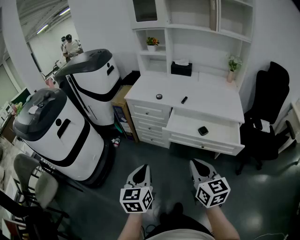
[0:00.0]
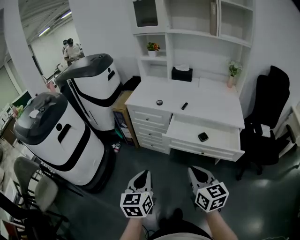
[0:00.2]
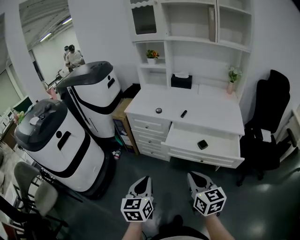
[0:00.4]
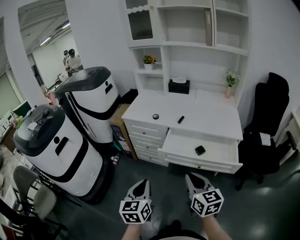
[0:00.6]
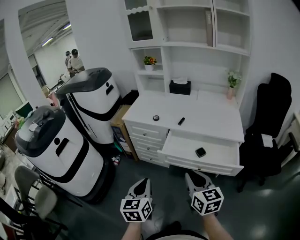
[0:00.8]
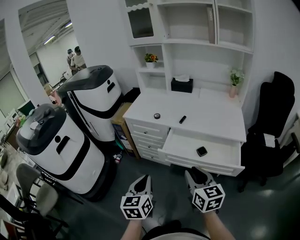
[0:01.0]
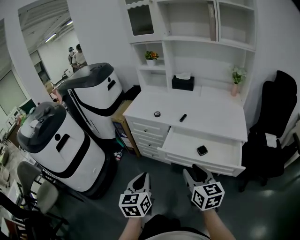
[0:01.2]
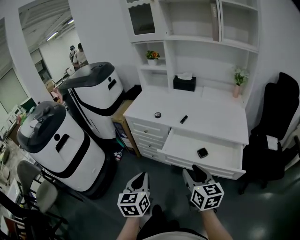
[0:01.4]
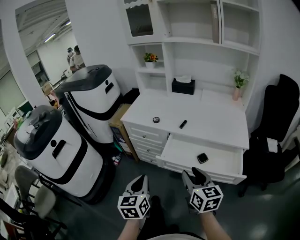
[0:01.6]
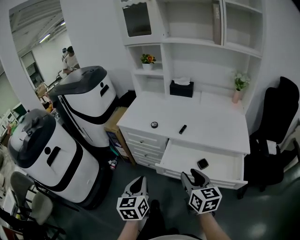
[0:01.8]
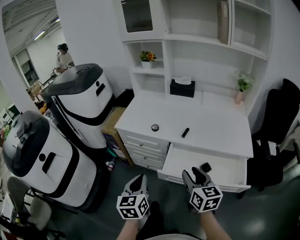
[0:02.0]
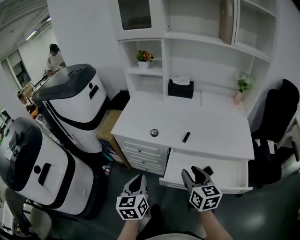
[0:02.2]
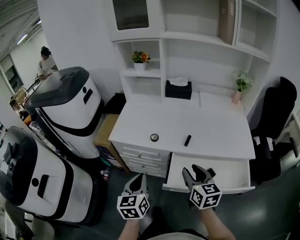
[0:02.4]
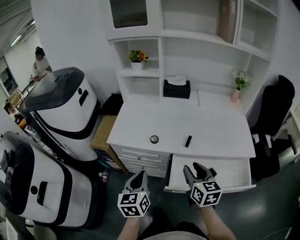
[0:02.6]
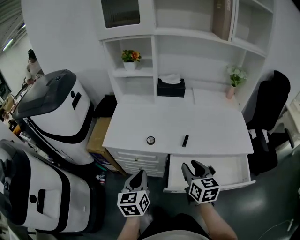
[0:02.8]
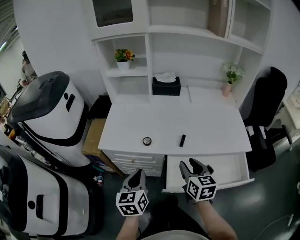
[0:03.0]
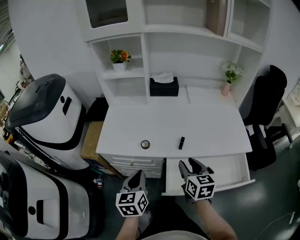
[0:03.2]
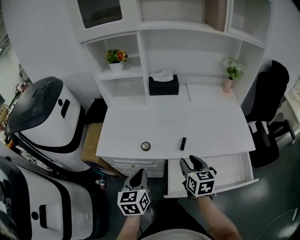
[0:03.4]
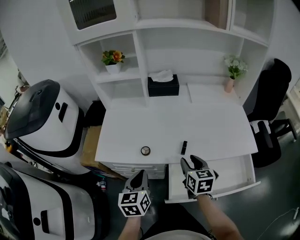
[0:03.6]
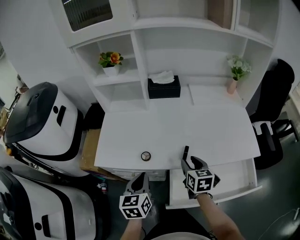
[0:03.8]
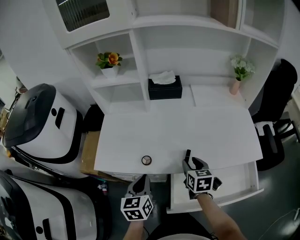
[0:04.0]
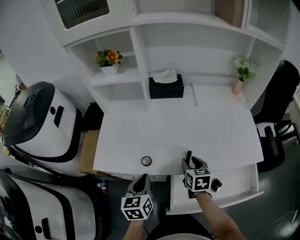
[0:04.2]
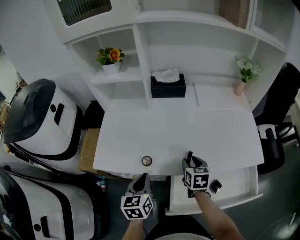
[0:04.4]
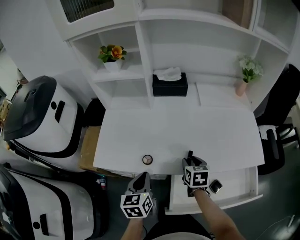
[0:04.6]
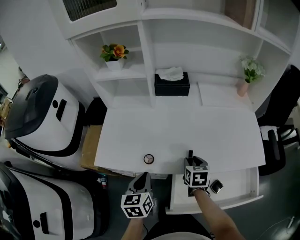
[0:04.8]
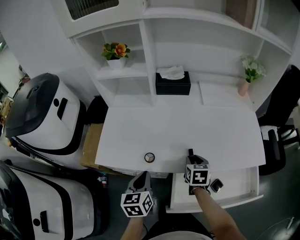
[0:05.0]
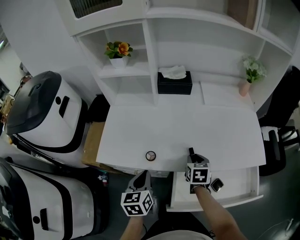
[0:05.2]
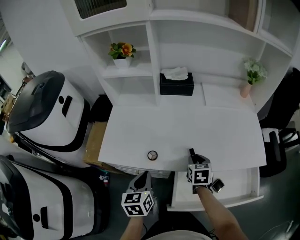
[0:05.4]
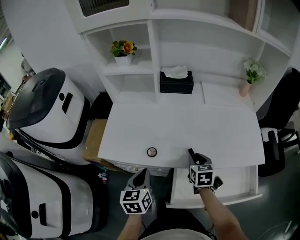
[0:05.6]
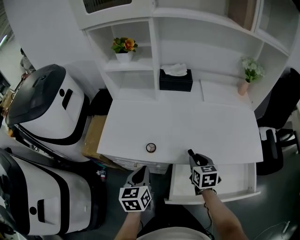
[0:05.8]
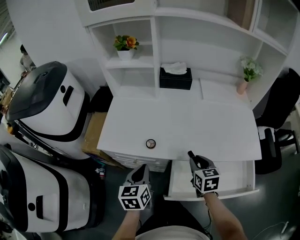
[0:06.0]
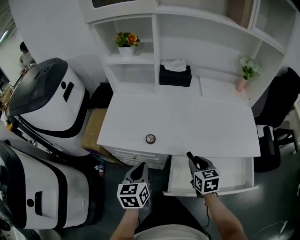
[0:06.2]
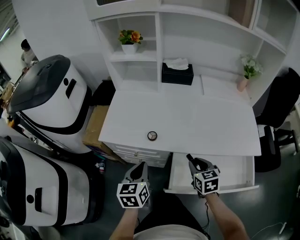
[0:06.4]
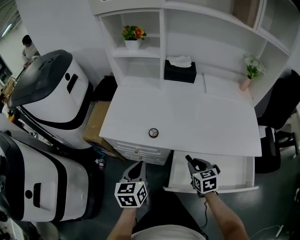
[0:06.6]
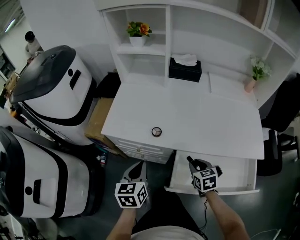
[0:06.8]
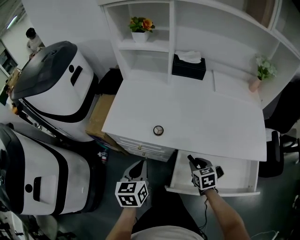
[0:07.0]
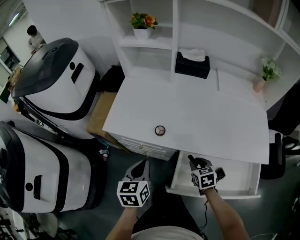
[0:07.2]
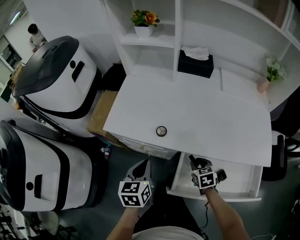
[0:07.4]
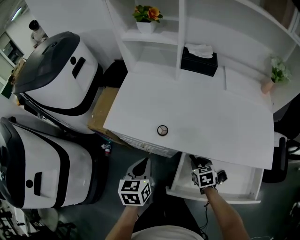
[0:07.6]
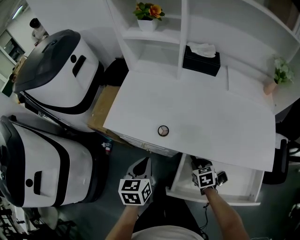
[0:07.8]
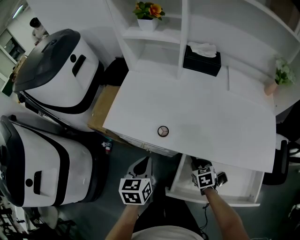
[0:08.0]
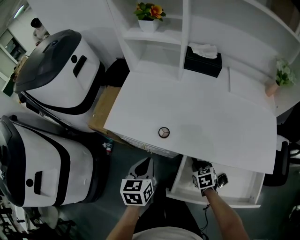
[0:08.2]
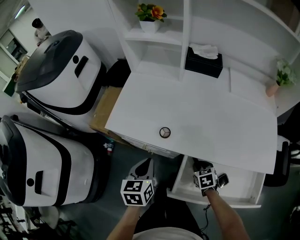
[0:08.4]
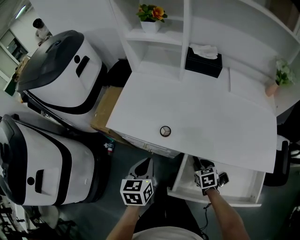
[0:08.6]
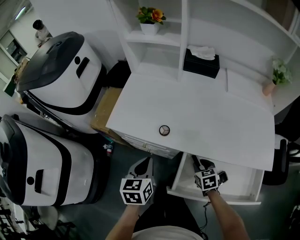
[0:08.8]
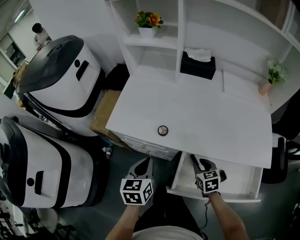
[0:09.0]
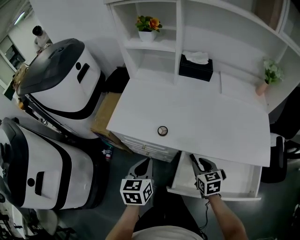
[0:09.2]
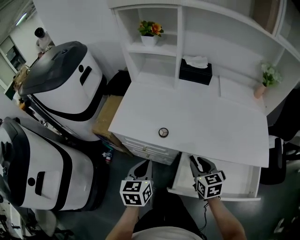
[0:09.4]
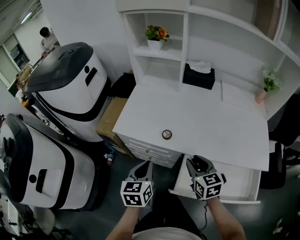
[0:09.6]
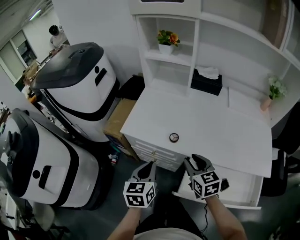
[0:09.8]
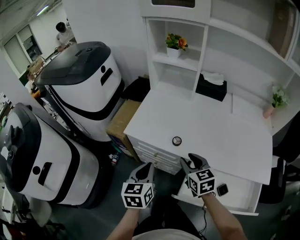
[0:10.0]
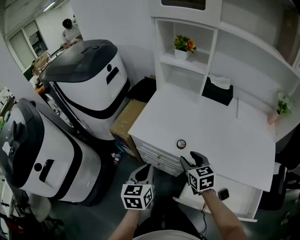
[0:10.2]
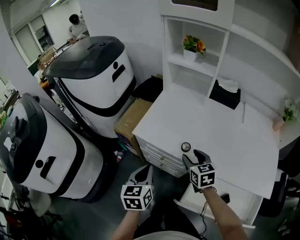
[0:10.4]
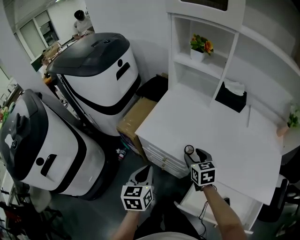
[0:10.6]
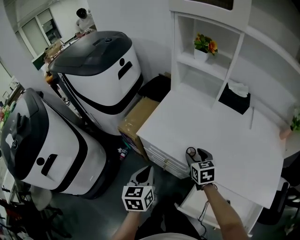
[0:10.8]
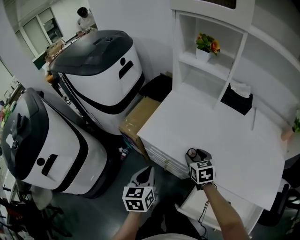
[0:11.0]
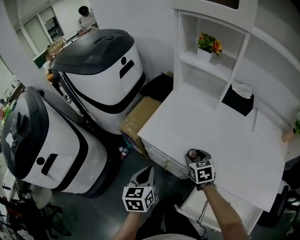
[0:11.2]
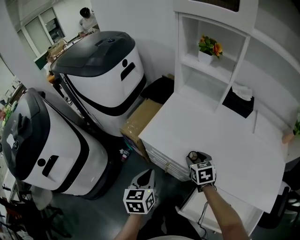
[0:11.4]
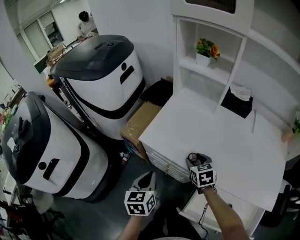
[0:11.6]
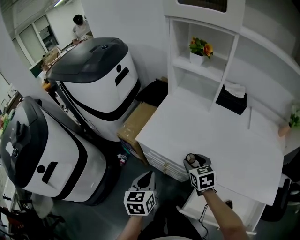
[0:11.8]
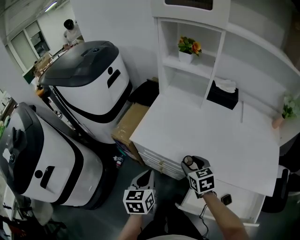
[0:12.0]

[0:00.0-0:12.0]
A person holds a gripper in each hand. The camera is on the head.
0.0 to 1.6 s: The grippers both shift forward and to the right by about 15 cm. The right gripper opens.
1.6 to 3.0 s: Both grippers travel together forward, approximately 25 cm. The right gripper rotates roughly 20 degrees.
3.0 to 4.4 s: The two grippers go about 15 cm forward and downward.
4.4 to 6.0 s: Both grippers travel together backward, roughly 5 cm.
6.0 to 7.6 s: The right gripper shifts approximately 15 cm downward, and changes its angle by roughly 20 degrees.
7.6 to 9.0 s: The grippers make only small movements.
9.0 to 10.4 s: The left gripper goes roughly 10 cm to the left. Meanwhile the right gripper travels to the left, forward and upward by approximately 20 cm, and opens its fingers.

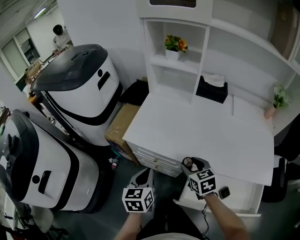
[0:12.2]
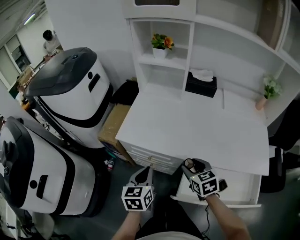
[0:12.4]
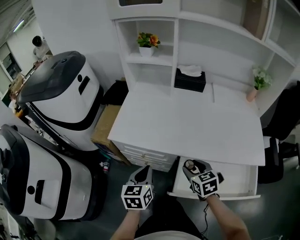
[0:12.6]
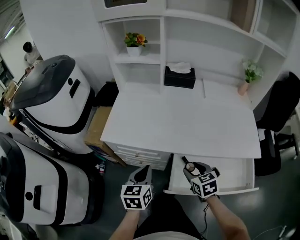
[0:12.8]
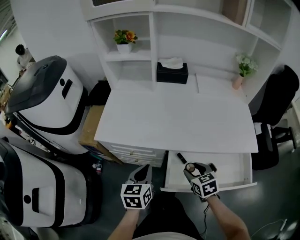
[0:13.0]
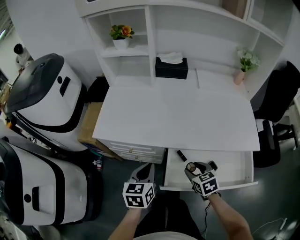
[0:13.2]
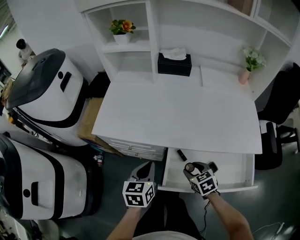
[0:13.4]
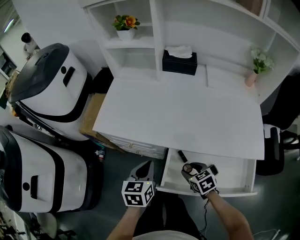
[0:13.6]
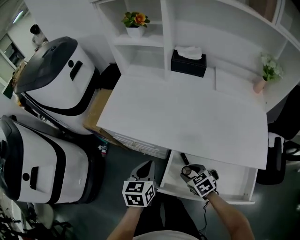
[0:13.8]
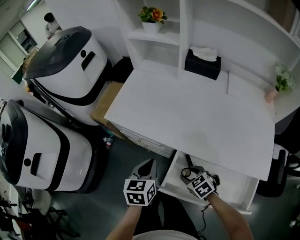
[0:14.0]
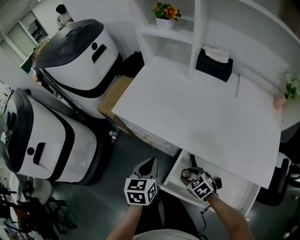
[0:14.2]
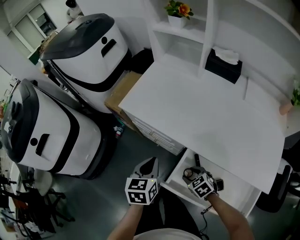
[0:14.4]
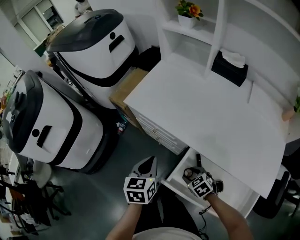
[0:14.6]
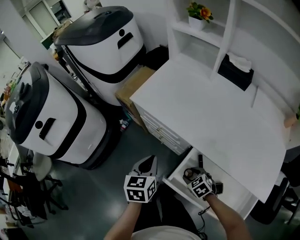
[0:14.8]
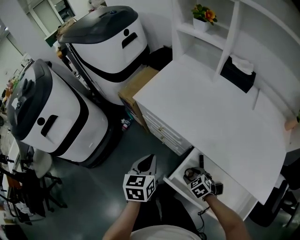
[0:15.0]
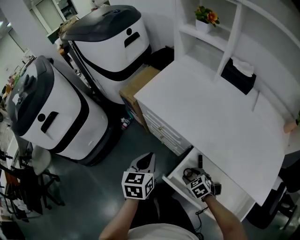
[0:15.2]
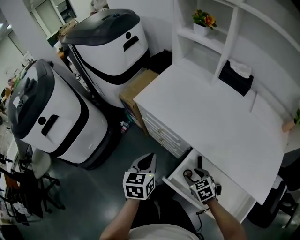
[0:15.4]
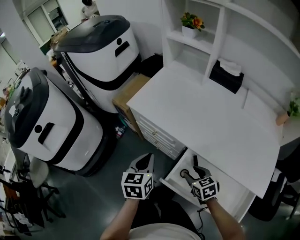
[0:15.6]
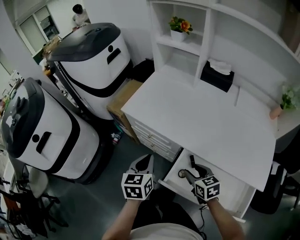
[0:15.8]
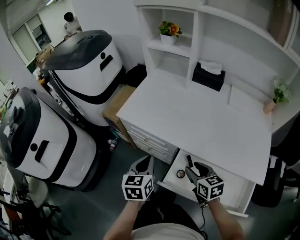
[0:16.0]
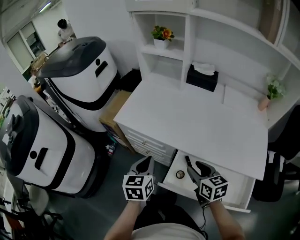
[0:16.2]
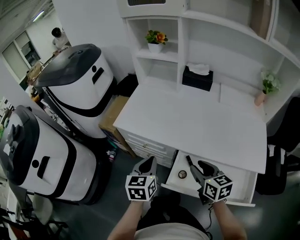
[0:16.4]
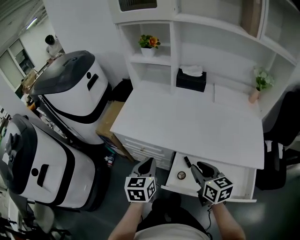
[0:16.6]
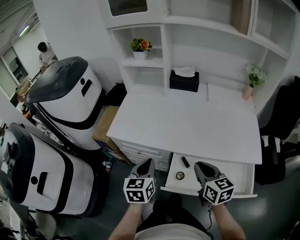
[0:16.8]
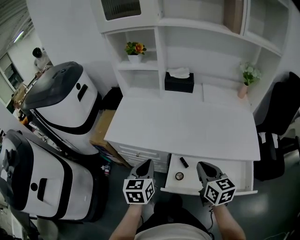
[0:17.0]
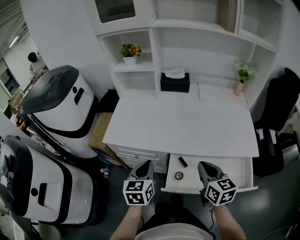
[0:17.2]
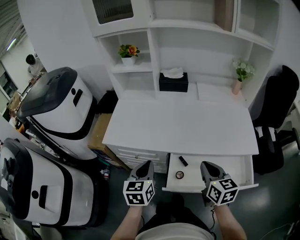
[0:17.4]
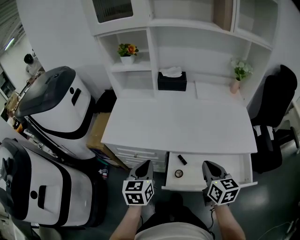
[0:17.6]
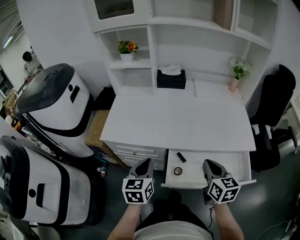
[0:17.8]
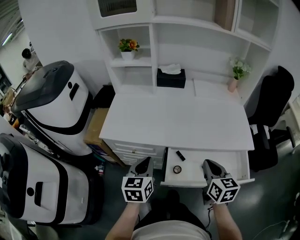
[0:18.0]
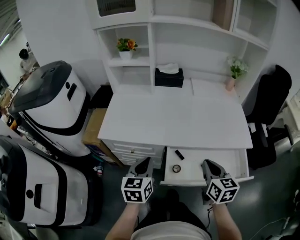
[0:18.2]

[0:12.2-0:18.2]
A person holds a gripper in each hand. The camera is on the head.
12.2 to 13.8 s: The right gripper heads downward, to the right and backward, covering some 20 cm, while the left gripper goes some 15 cm to the right.
13.8 to 15.2 s: The right gripper shifts roughly 5 cm downward, and changes its angle by approximately 30 degrees. The left gripper is displaced to the left by about 10 cm, and changes its angle by roughly 20 degrees.
15.2 to 16.6 s: The right gripper goes about 25 cm upward, tips its fingers upward by about 40 degrees, and closes. The left gripper moves roughly 10 cm, and swivels about 20 degrees.
16.6 to 18.2 s: The right gripper goes roughly 5 cm to the right and backward, swivels roughly 30 degrees, and closes its fingers.

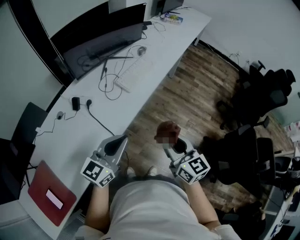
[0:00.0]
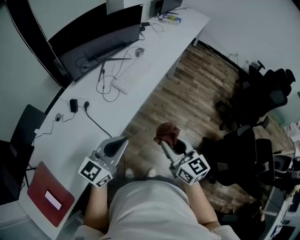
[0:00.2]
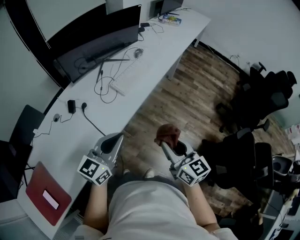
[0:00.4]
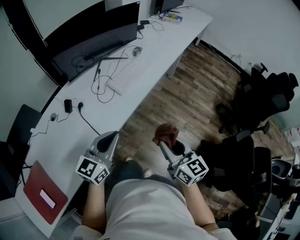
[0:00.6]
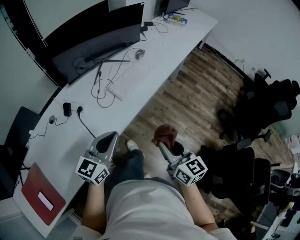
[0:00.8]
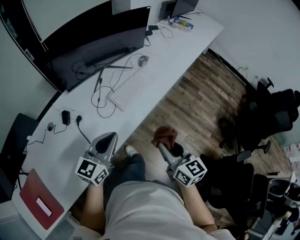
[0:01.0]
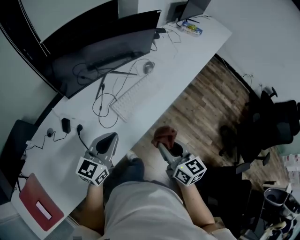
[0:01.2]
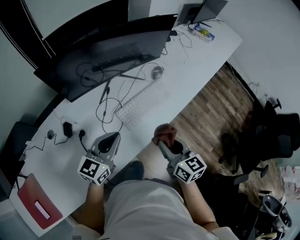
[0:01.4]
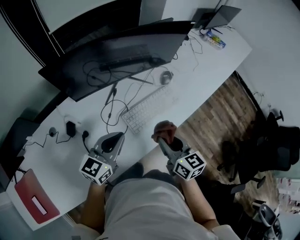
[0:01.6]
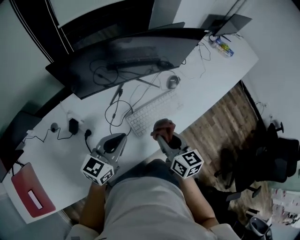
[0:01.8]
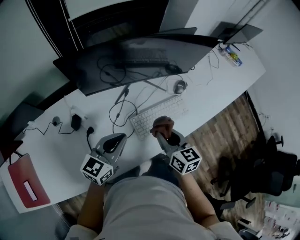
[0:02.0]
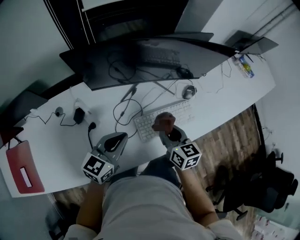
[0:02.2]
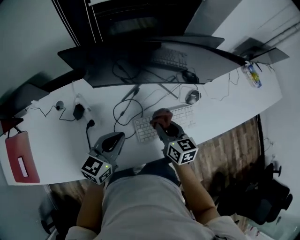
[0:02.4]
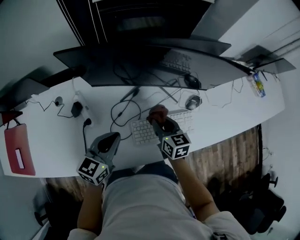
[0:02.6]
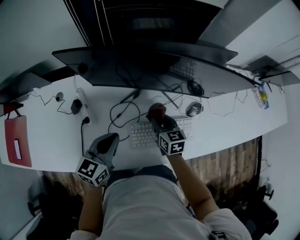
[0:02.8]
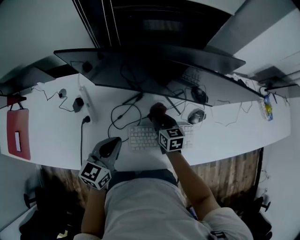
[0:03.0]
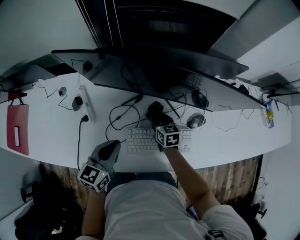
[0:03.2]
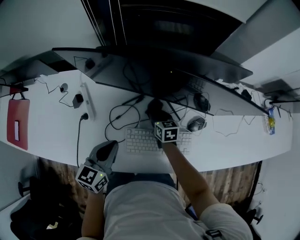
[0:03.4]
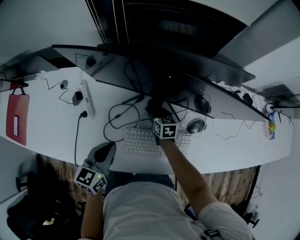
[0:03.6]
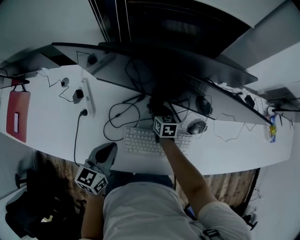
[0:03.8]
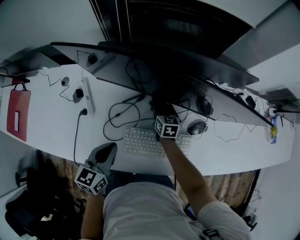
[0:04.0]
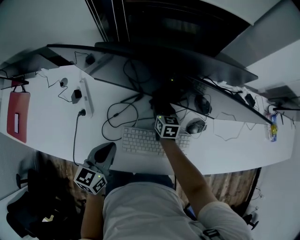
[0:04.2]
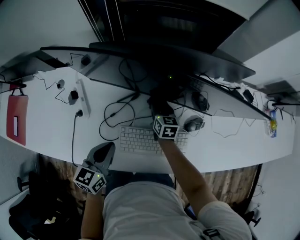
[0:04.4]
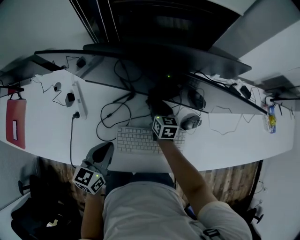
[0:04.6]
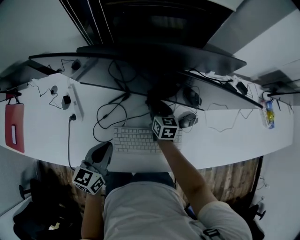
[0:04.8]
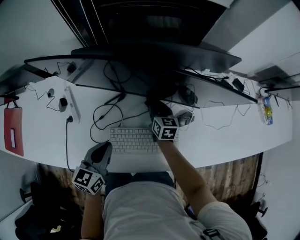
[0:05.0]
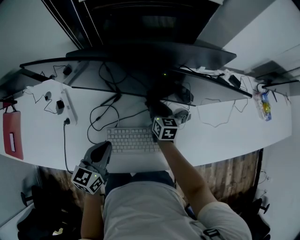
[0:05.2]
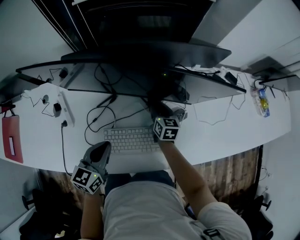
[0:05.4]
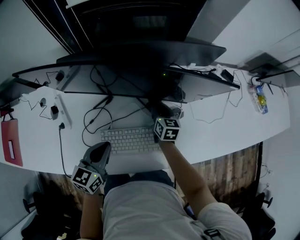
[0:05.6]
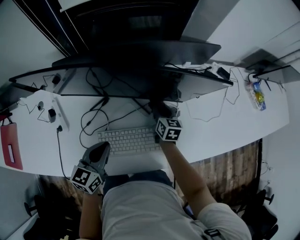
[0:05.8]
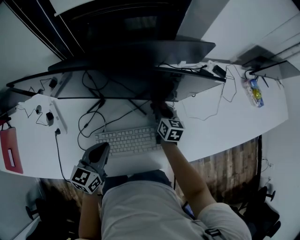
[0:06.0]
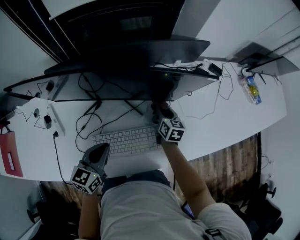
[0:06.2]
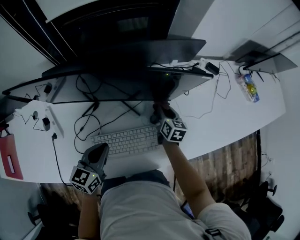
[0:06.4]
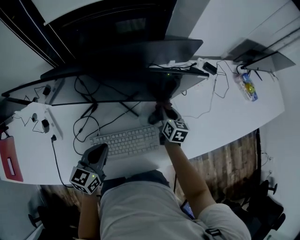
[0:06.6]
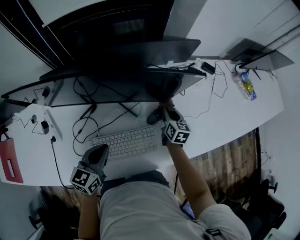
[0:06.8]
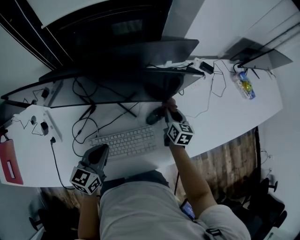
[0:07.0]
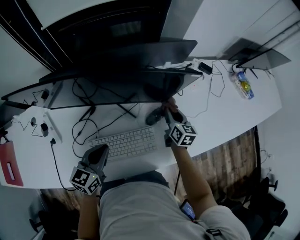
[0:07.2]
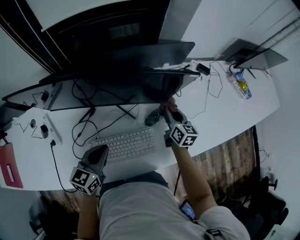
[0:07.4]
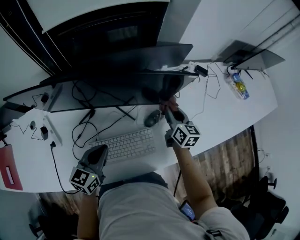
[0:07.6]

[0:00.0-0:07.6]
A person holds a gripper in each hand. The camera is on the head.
0.0 to 1.6 s: The two grippers go roughly 35 cm forward. The left gripper rotates some 20 degrees.
1.6 to 3.0 s: The right gripper moves approximately 30 cm, and swivels approximately 30 degrees. Meanwhile the left gripper ends up some 10 cm from where it was, and swivels about 40 degrees.
3.0 to 4.6 s: The right gripper is displaced forward by approximately 10 cm.
4.6 to 6.0 s: The right gripper heads to the right, covering roughly 20 cm, while the left gripper heads to the right, covering roughly 10 cm.
6.0 to 7.6 s: The right gripper shifts approximately 15 cm upward and to the right.
